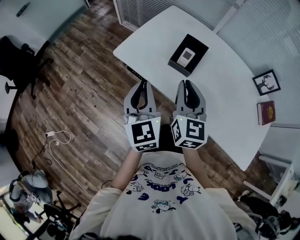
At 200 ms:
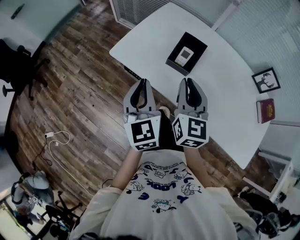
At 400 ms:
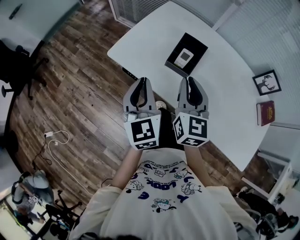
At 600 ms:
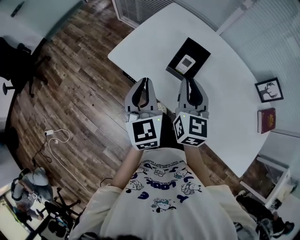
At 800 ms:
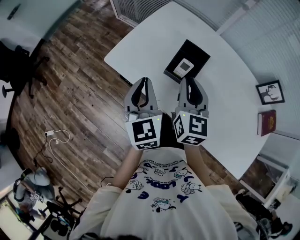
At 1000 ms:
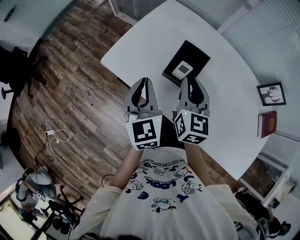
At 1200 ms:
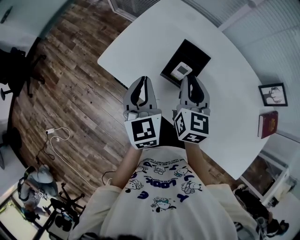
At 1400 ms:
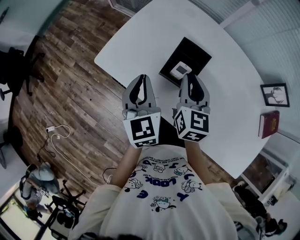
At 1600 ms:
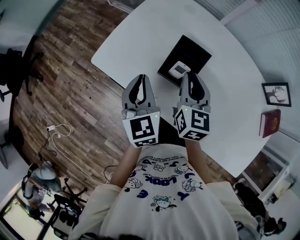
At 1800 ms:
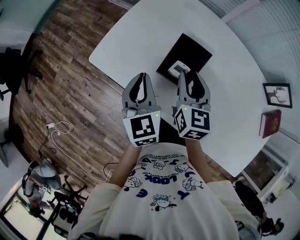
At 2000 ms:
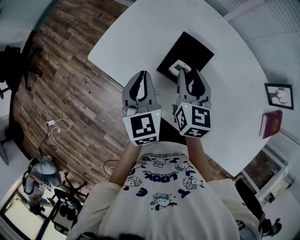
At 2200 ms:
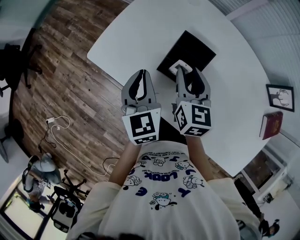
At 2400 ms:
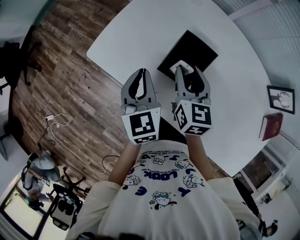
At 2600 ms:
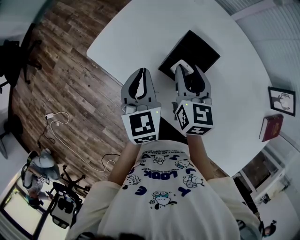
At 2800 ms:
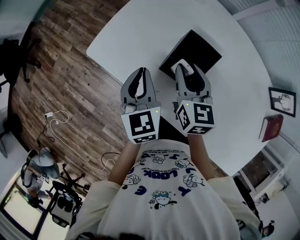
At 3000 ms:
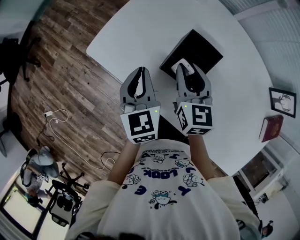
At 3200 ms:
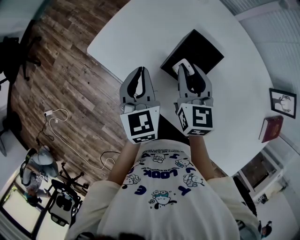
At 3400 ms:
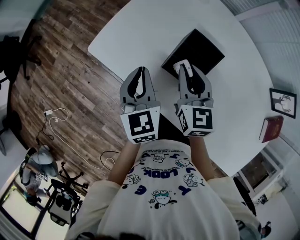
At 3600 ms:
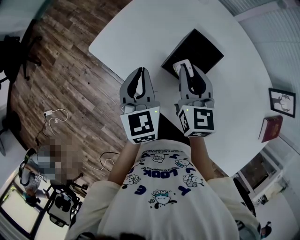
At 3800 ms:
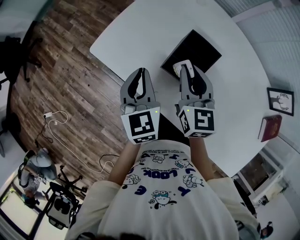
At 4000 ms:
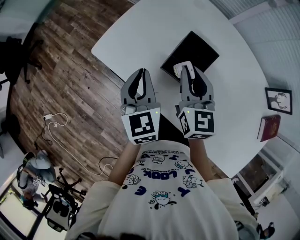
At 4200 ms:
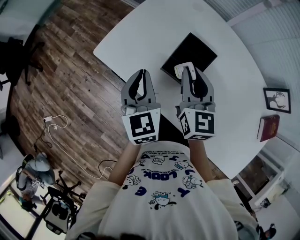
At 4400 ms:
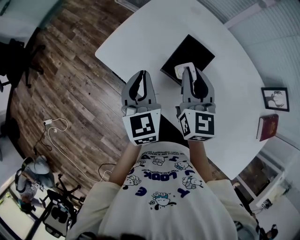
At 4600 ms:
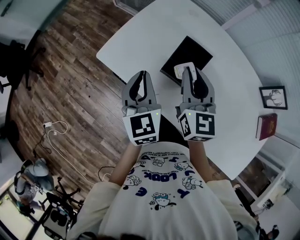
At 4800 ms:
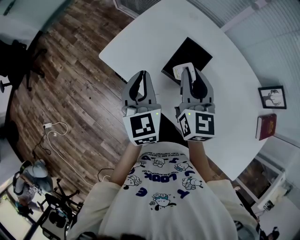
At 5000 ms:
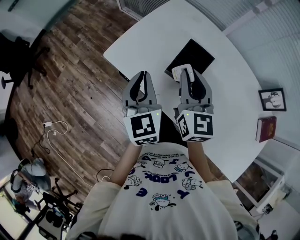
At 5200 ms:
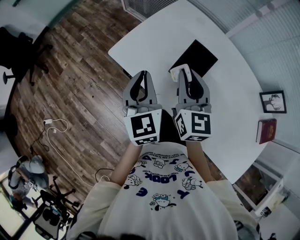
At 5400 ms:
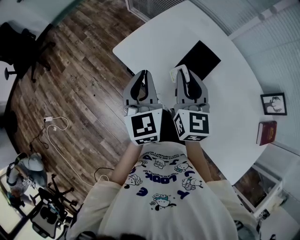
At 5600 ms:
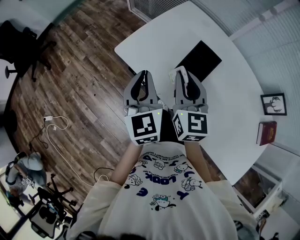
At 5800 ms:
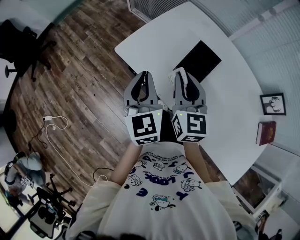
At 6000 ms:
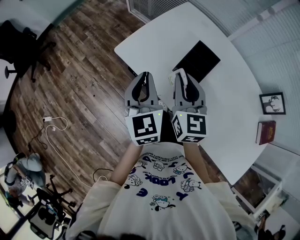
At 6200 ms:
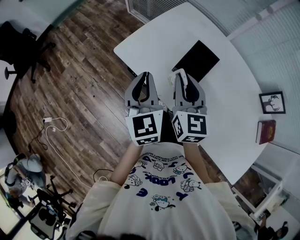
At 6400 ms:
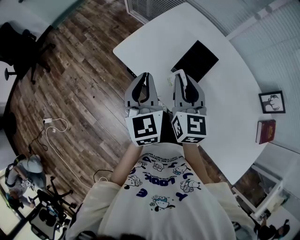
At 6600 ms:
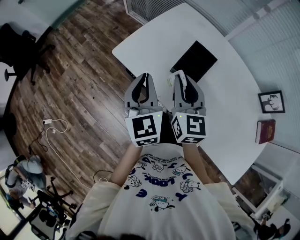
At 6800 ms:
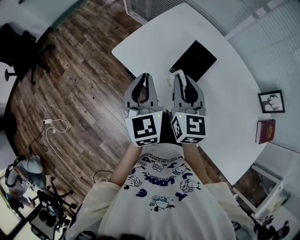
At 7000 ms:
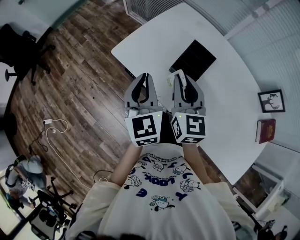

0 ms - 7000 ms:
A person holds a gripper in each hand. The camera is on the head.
0 ms - 1400 ms: The left gripper heads forward and downward, covering about 20 cm. The right gripper shifts some 20 cm forward, downward and to the right.
1400 ms - 2800 ms: The two grippers go roughly 5 cm downward. The right gripper opens its fingers.
2800 ms - 4200 ms: The left gripper moves some 5 cm; the right gripper heads upward, covering approximately 5 cm.
4200 ms - 5600 ms: The grippers both shift to the left, upward and backward by about 10 cm.
5600 ms - 7000 ms: The grippers move only a little.

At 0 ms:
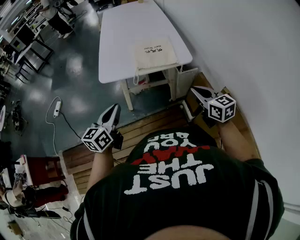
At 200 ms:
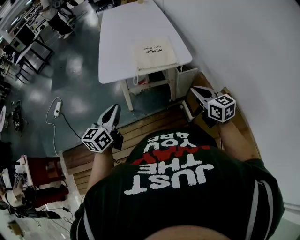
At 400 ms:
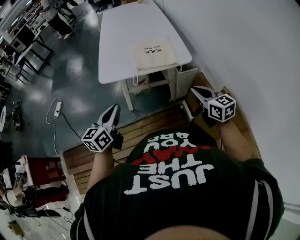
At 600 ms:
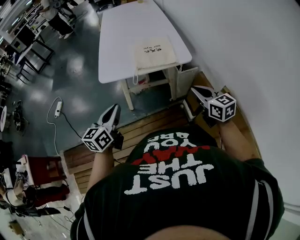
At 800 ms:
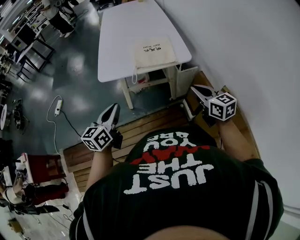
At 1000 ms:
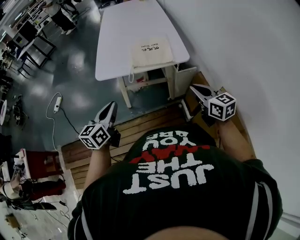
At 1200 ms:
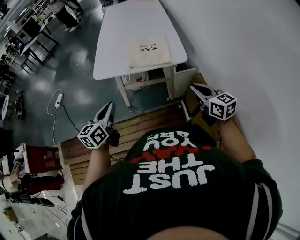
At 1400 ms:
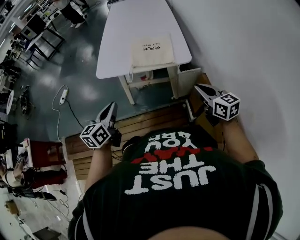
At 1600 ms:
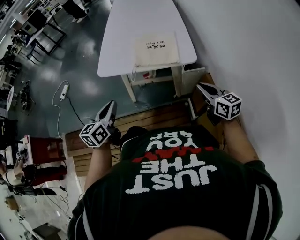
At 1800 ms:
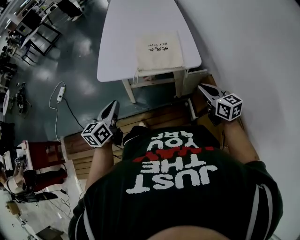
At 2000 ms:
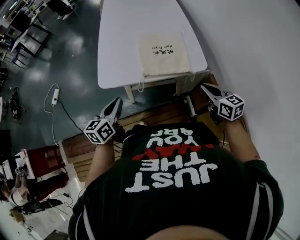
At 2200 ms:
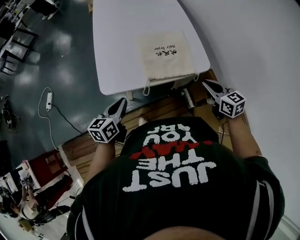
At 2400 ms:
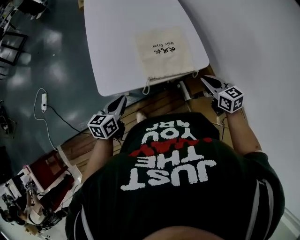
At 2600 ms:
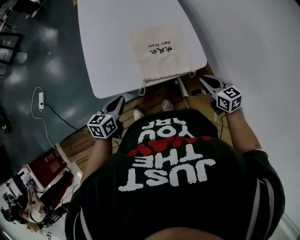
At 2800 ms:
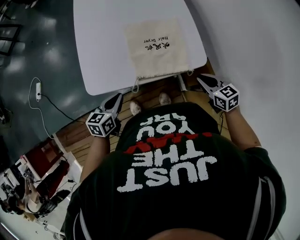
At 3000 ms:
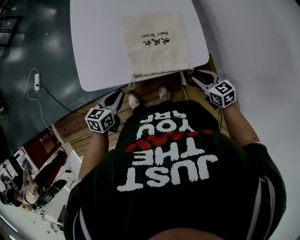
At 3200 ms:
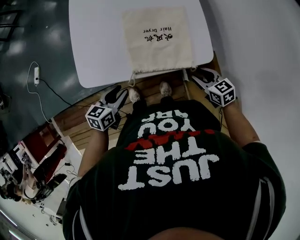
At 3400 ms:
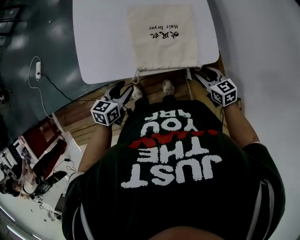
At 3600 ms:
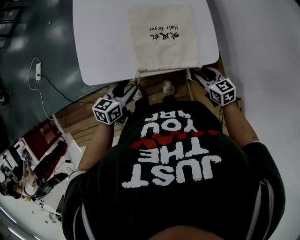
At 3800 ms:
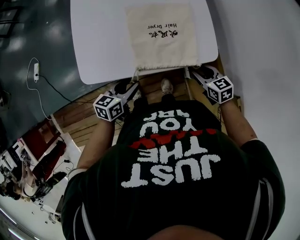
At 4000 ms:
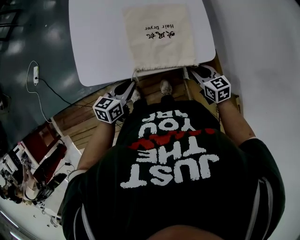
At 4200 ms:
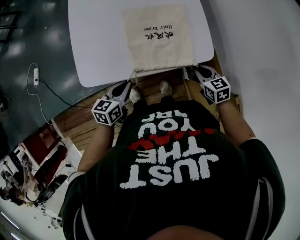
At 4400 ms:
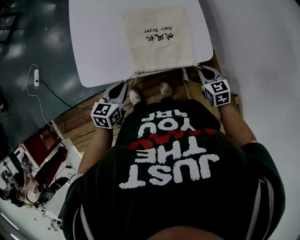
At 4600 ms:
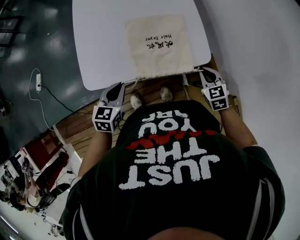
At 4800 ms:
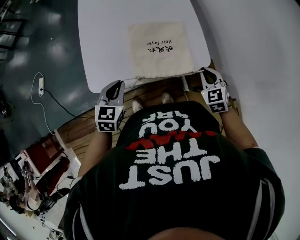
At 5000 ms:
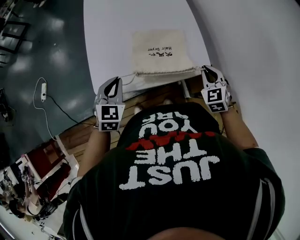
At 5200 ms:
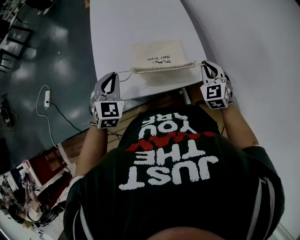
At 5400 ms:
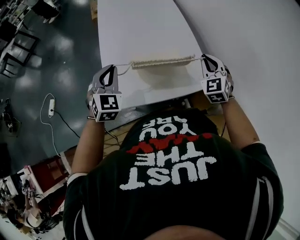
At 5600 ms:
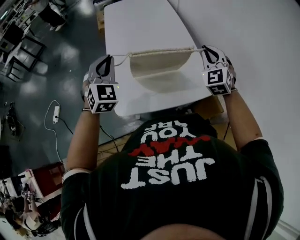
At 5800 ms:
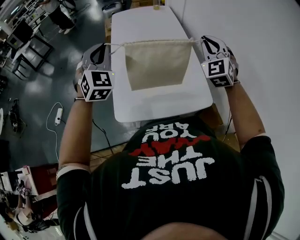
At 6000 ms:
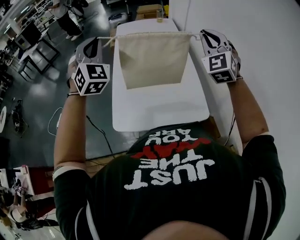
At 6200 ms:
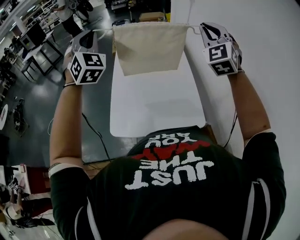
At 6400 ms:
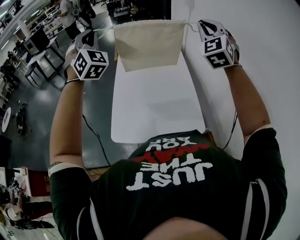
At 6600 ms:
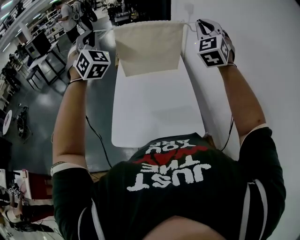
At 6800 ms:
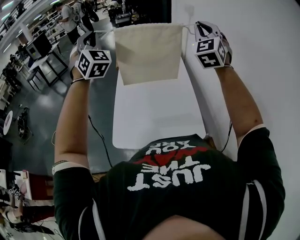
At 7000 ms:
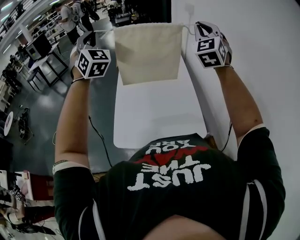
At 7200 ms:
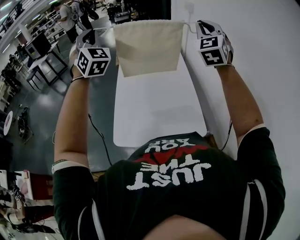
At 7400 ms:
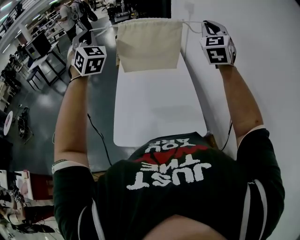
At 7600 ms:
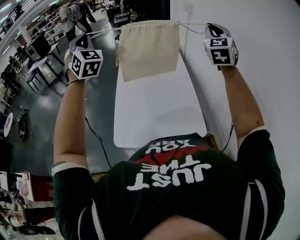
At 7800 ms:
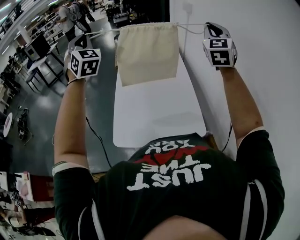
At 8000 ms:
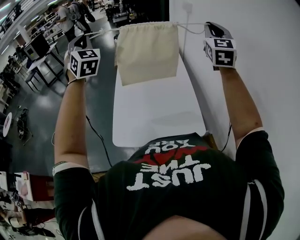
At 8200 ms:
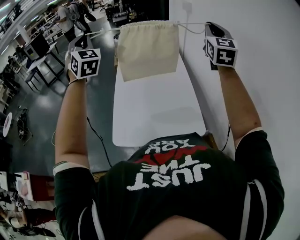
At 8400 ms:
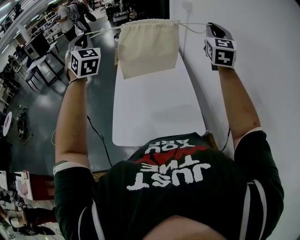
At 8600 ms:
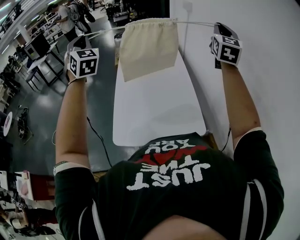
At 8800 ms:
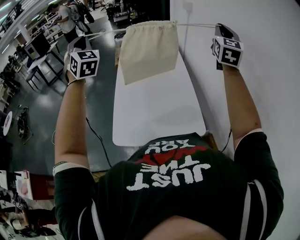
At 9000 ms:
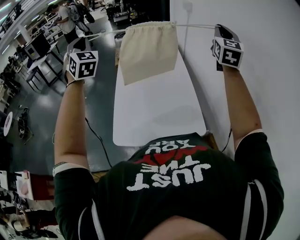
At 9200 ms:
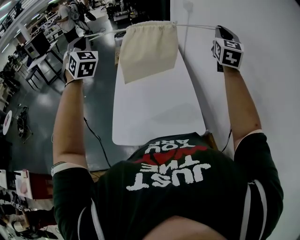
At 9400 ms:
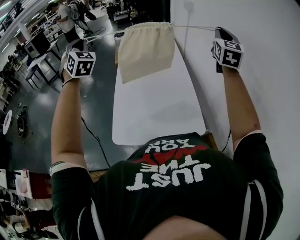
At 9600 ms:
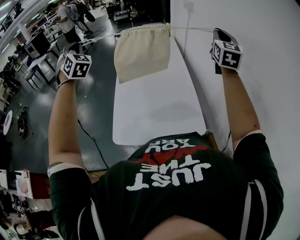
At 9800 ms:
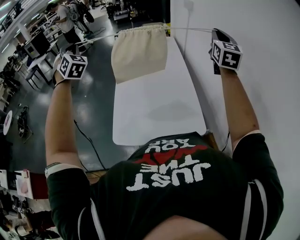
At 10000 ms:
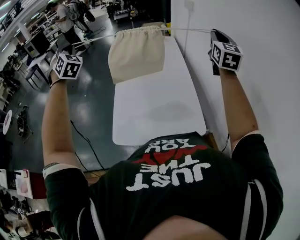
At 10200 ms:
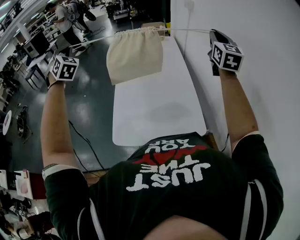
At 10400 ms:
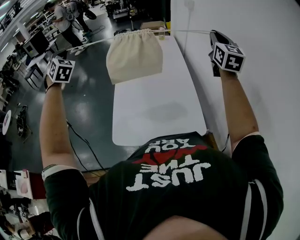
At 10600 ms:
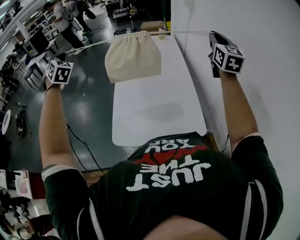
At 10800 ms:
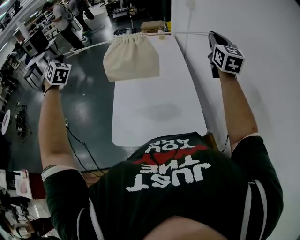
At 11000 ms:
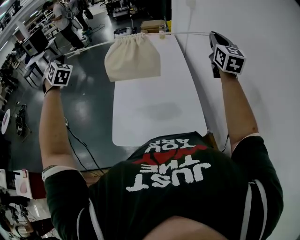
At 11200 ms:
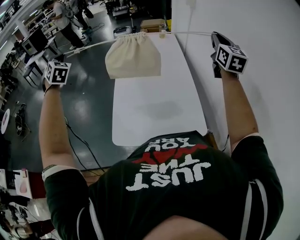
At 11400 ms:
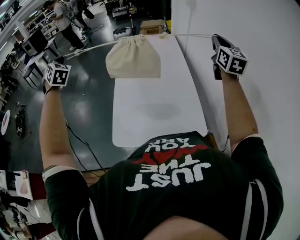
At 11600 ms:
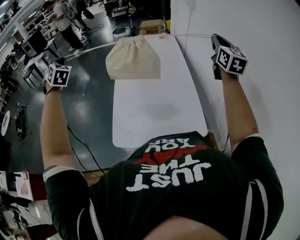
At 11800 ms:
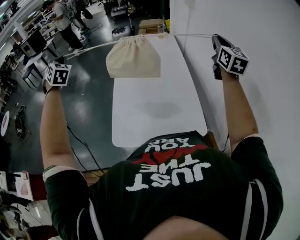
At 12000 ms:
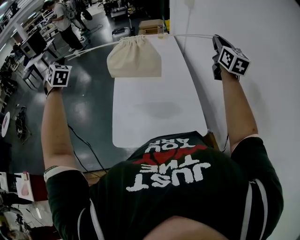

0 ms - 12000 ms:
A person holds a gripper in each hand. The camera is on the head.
0 ms - 1600 ms: The right gripper travels to the right and forward by some 10 cm.
1600 ms - 3000 ms: Both grippers travel together forward and downward, roughly 25 cm. The left gripper rotates some 30 degrees, while the right gripper changes its angle by roughly 30 degrees, and opens.
3000 ms - 4400 ms: The left gripper opens and closes again.
4400 ms - 6000 ms: The left gripper travels upward, to the left and forward by approximately 50 cm, and points its fingers about 30 degrees further upward. Meanwhile the right gripper moves upward, roughly 50 cm, and tilts its fingers roughly 50 degrees upward.
6000 ms - 7600 ms: The right gripper heads upward, to the right and forward, covering roughly 10 cm, and swivels roughly 20 degrees; the left gripper heads upward and forward, covering approximately 10 cm.
7600 ms - 9000 ms: The right gripper heads to the right, covering approximately 5 cm.
9000 ms - 10400 ms: The left gripper moves to the left and downward, about 15 cm, and rotates approximately 20 degrees, while the right gripper changes place by about 5 cm.
10400 ms - 12000 ms: The grippers make only small movements.

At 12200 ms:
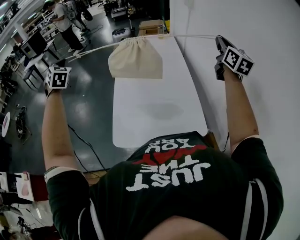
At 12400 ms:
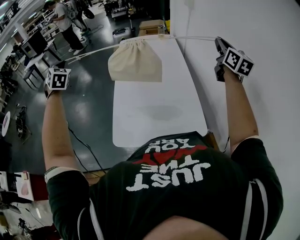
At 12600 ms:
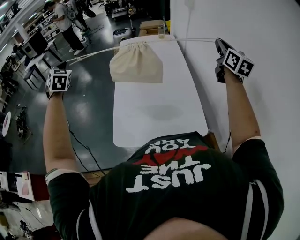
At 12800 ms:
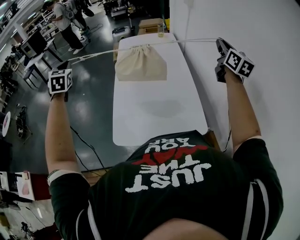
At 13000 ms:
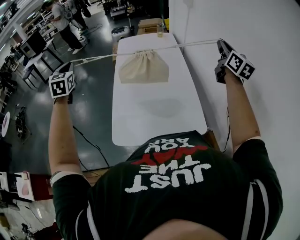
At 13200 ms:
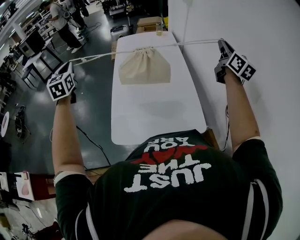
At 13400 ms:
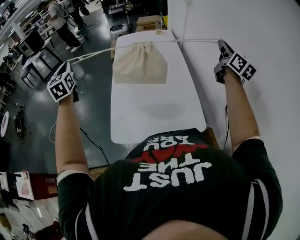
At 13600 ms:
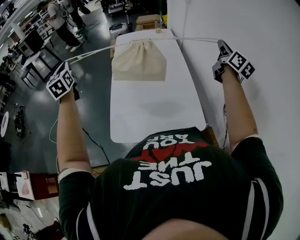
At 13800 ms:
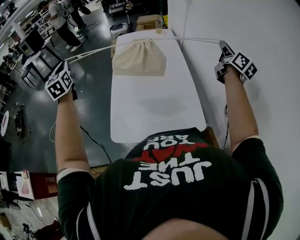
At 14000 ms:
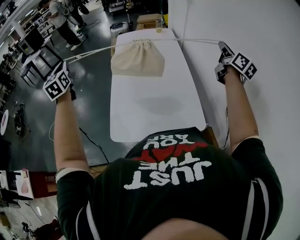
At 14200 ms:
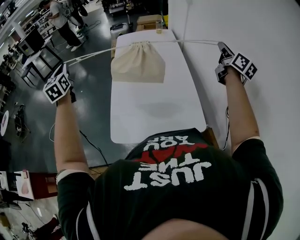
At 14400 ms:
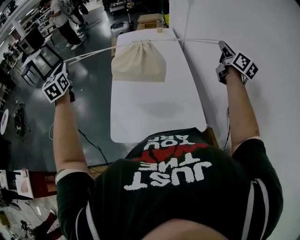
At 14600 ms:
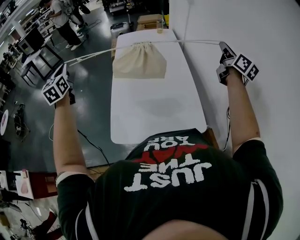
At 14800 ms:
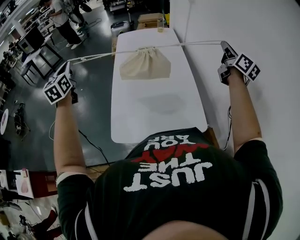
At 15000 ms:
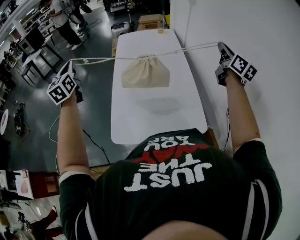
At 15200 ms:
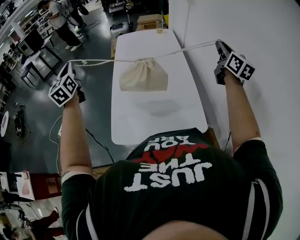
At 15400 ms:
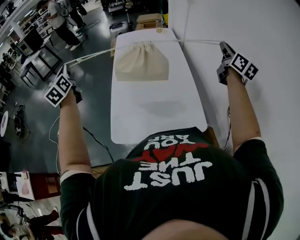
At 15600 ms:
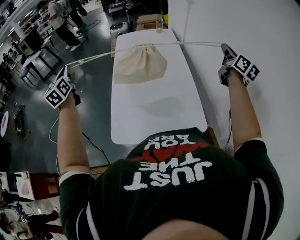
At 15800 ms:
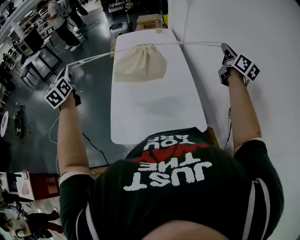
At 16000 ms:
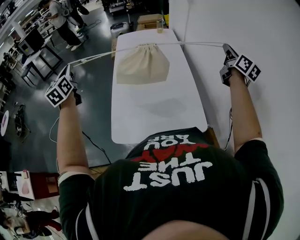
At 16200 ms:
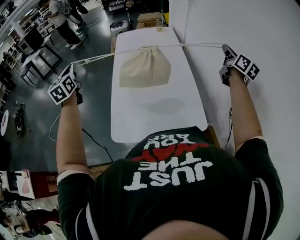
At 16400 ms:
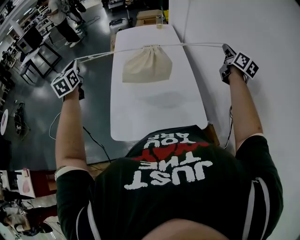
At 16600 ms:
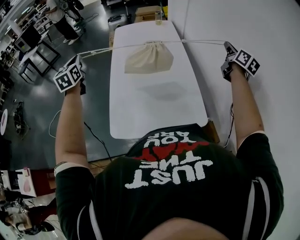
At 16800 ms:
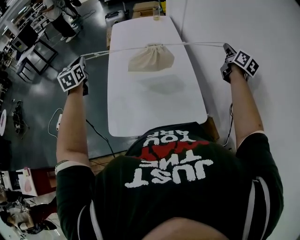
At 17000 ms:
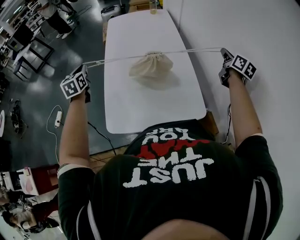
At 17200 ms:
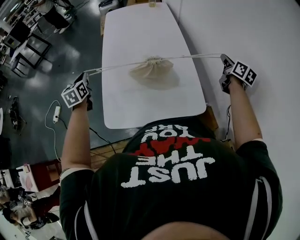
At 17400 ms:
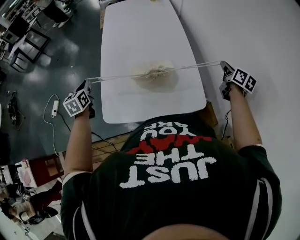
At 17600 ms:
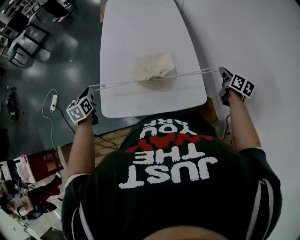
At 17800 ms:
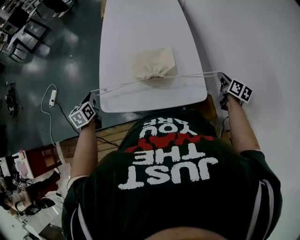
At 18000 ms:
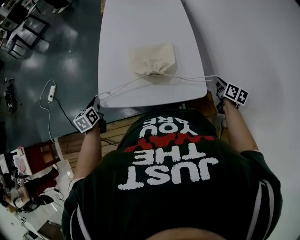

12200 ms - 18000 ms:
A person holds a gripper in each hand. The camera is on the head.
12200 ms - 13600 ms: The left gripper shifts by approximately 5 cm, and turns by some 40 degrees. Meanwhile the right gripper shifts by roughly 5 cm, and changes its angle by about 20 degrees.
13600 ms - 15000 ms: The grippers stay close to where they were, moving slightly.
15000 ms - 16600 ms: The left gripper goes approximately 5 cm downward. Meanwhile the right gripper moves to the right and downward, some 10 cm.
16600 ms - 18000 ms: The two grippers go roughly 35 cm downward and backward. The left gripper swivels about 40 degrees, while the right gripper points its fingers roughly 30 degrees further downward.
